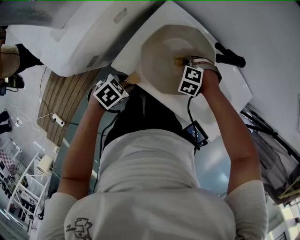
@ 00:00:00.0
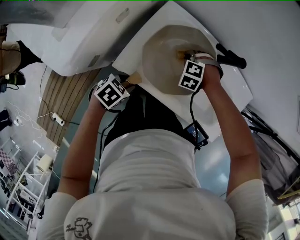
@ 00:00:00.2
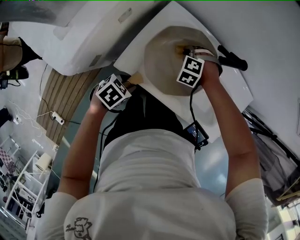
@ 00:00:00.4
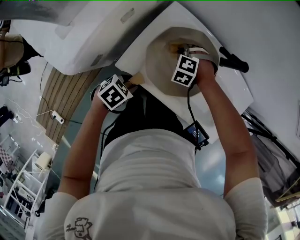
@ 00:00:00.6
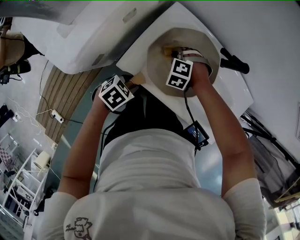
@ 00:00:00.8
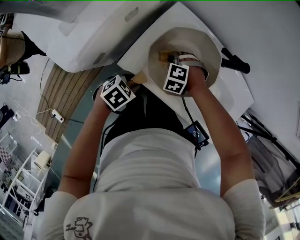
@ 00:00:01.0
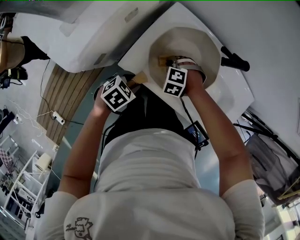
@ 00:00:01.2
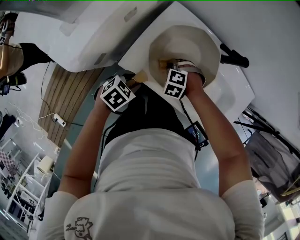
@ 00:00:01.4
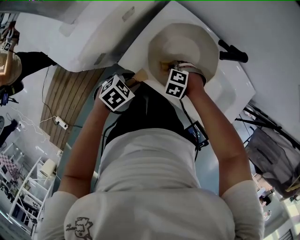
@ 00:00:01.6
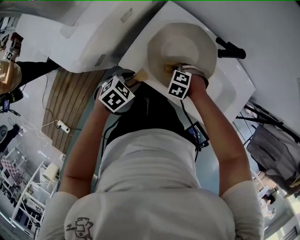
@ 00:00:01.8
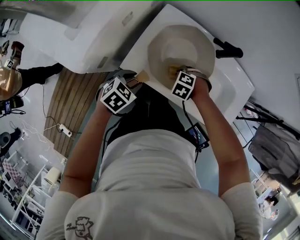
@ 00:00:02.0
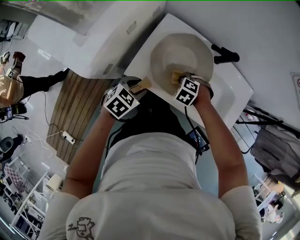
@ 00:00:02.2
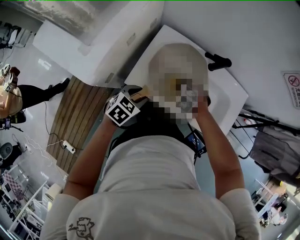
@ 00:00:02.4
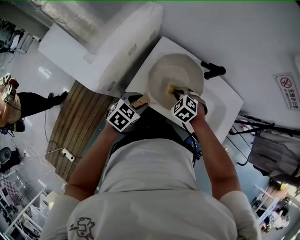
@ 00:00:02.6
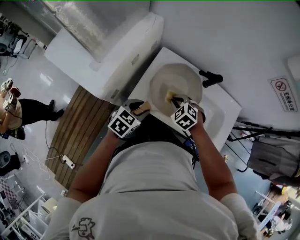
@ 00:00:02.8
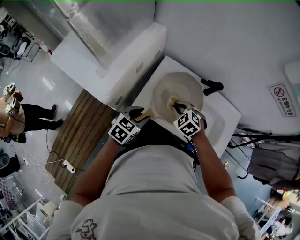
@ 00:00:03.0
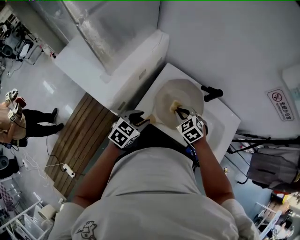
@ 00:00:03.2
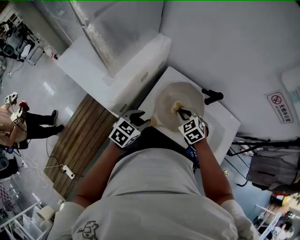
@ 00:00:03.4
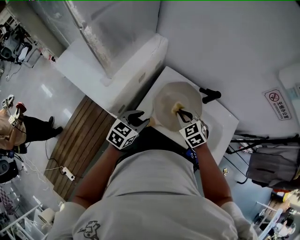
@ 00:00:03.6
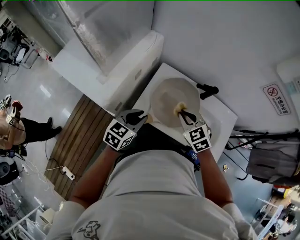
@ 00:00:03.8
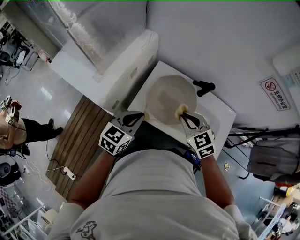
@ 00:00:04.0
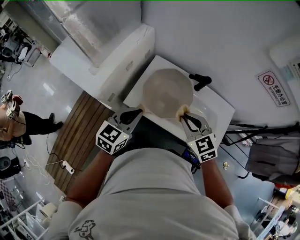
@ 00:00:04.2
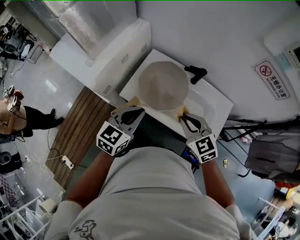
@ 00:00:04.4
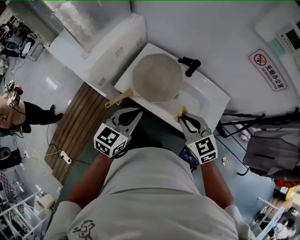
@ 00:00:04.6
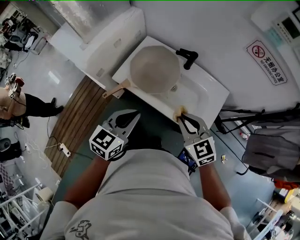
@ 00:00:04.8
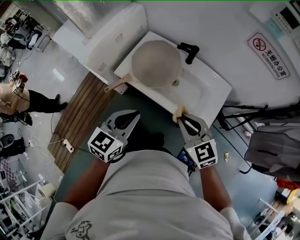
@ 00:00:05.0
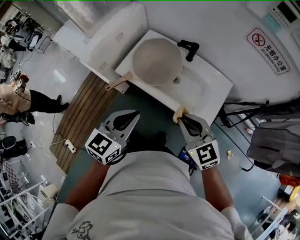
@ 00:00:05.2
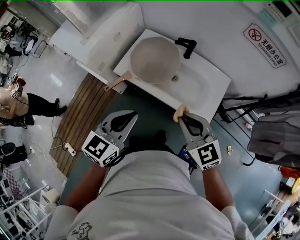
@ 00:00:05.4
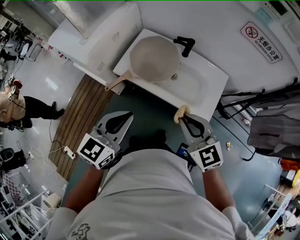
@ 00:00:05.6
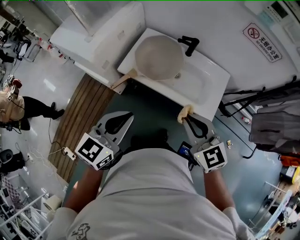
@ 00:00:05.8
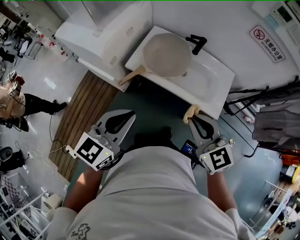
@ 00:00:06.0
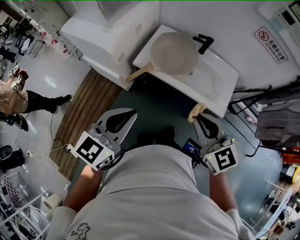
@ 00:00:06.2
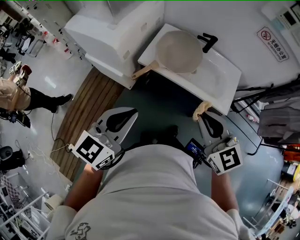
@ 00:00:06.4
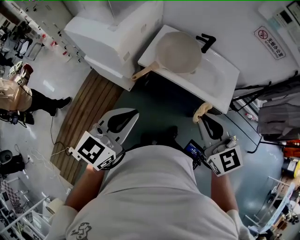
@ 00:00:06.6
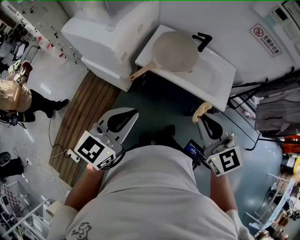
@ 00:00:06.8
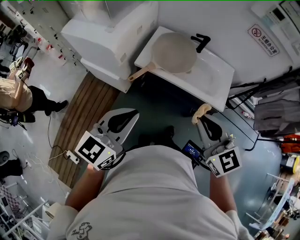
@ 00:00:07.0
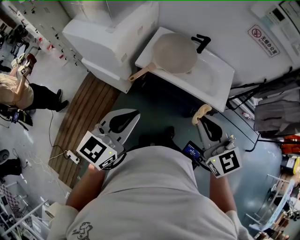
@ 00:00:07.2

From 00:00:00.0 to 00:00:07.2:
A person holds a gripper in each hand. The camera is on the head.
From 00:00:00.0 to 00:00:01.4: The right gripper changes place by about 10 cm.
From 00:00:01.4 to 00:00:02.8: Both grippers travel together upward, approximately 15 cm. The right gripper changes its angle by some 30 degrees.
From 00:00:02.8 to 00:00:04.4: The two grippers go approximately 20 cm upward, to the right and backward. The left gripper turns by about 20 degrees, and closes up. The right gripper changes its angle by about 30 degrees.
From 00:00:04.4 to 00:00:05.8: The two grippers go roughly 20 cm backward and upward.
From 00:00:05.8 to 00:00:07.2: The right gripper moves to the left, backward and upward, roughly 15 cm; the left gripper moves to the left and backward, some 15 cm.

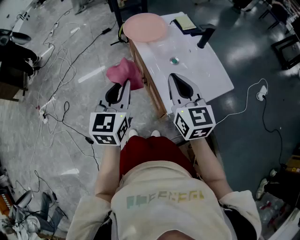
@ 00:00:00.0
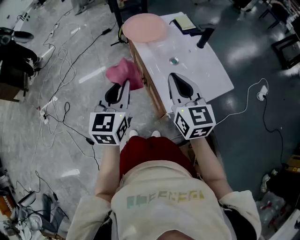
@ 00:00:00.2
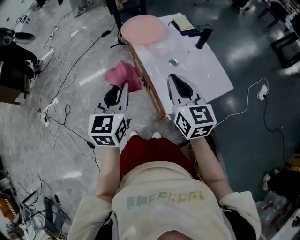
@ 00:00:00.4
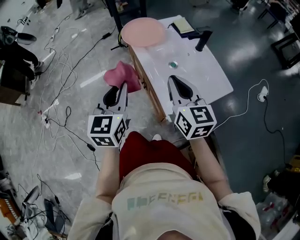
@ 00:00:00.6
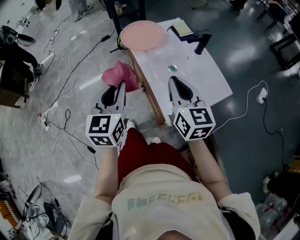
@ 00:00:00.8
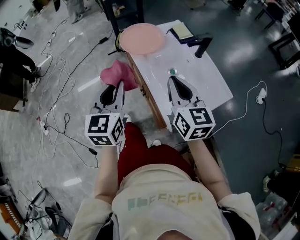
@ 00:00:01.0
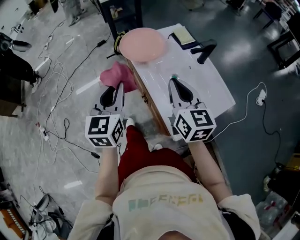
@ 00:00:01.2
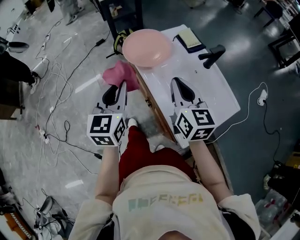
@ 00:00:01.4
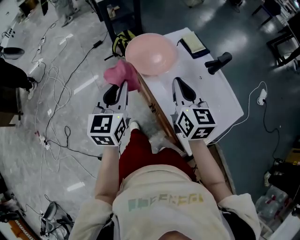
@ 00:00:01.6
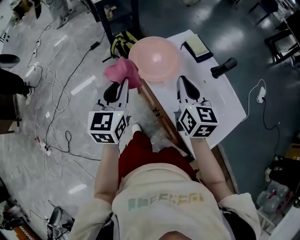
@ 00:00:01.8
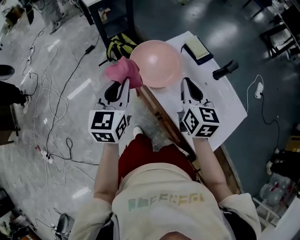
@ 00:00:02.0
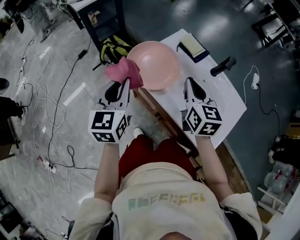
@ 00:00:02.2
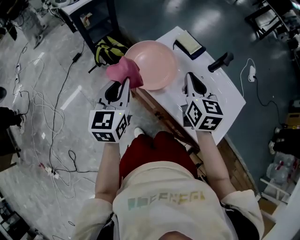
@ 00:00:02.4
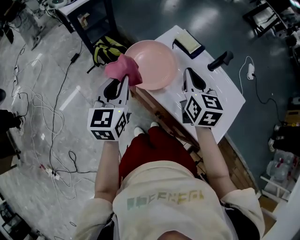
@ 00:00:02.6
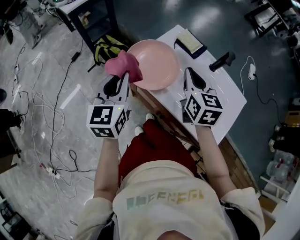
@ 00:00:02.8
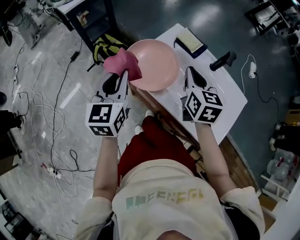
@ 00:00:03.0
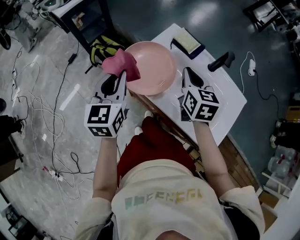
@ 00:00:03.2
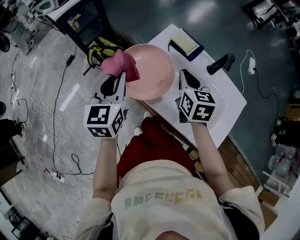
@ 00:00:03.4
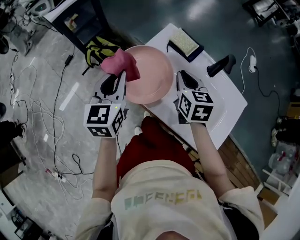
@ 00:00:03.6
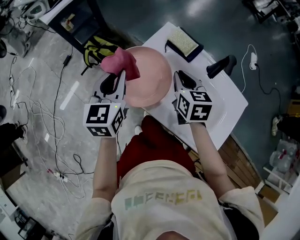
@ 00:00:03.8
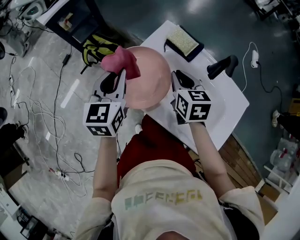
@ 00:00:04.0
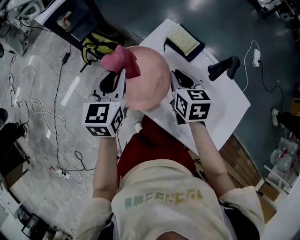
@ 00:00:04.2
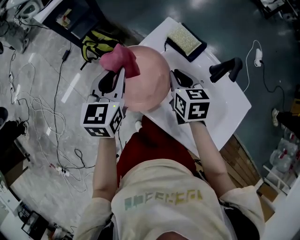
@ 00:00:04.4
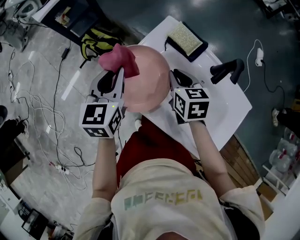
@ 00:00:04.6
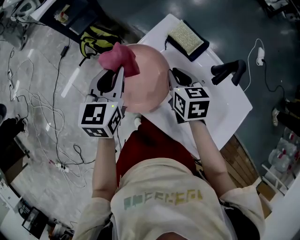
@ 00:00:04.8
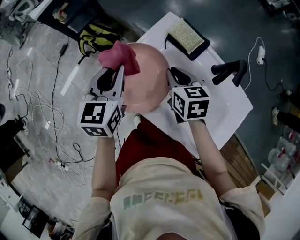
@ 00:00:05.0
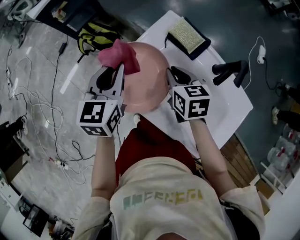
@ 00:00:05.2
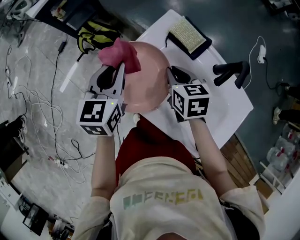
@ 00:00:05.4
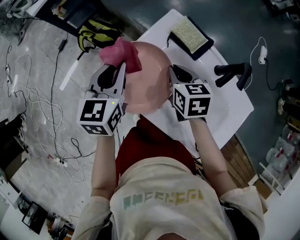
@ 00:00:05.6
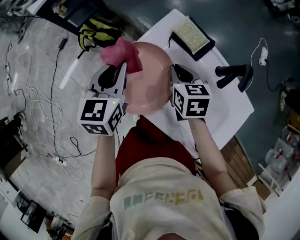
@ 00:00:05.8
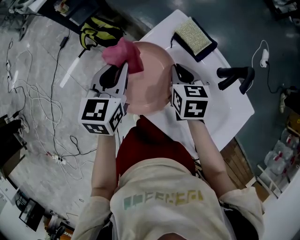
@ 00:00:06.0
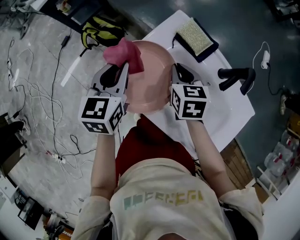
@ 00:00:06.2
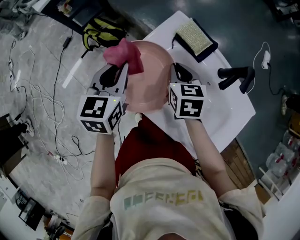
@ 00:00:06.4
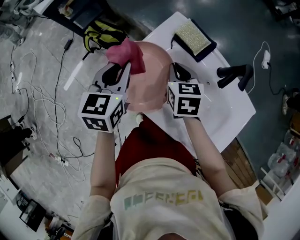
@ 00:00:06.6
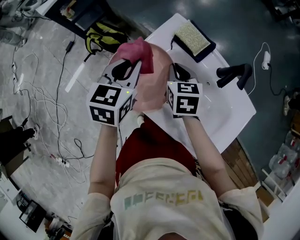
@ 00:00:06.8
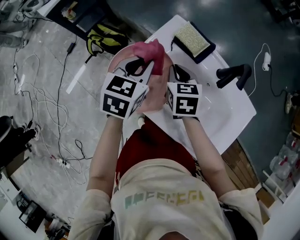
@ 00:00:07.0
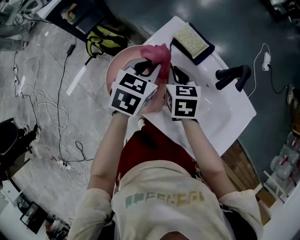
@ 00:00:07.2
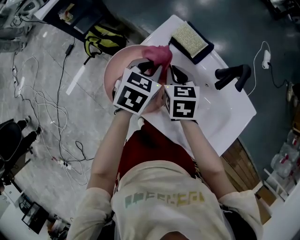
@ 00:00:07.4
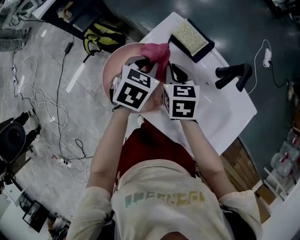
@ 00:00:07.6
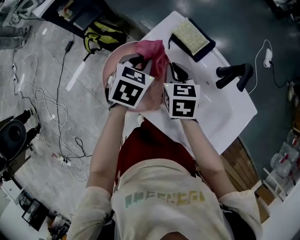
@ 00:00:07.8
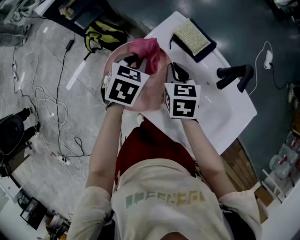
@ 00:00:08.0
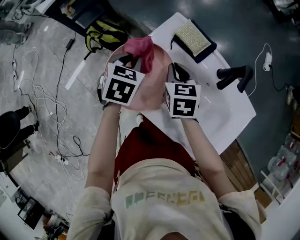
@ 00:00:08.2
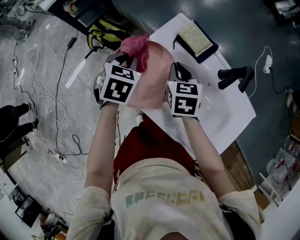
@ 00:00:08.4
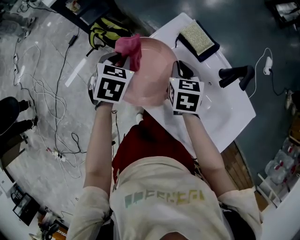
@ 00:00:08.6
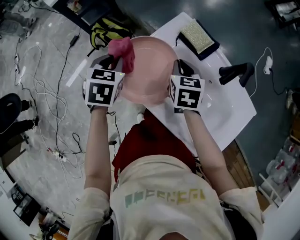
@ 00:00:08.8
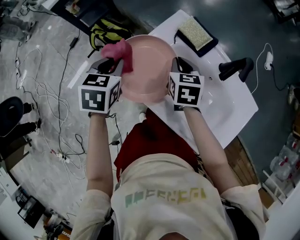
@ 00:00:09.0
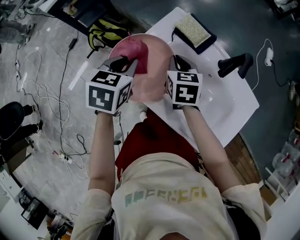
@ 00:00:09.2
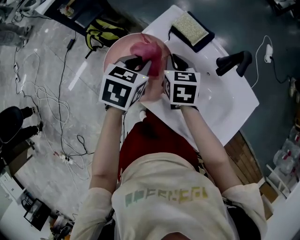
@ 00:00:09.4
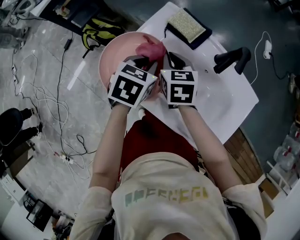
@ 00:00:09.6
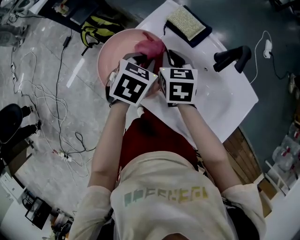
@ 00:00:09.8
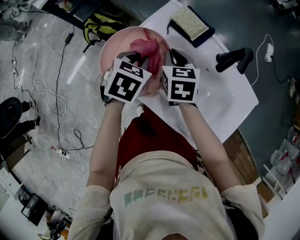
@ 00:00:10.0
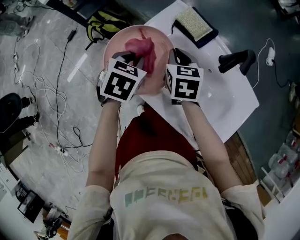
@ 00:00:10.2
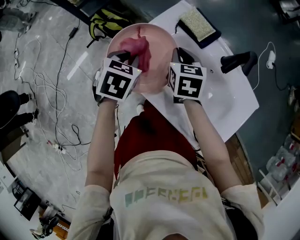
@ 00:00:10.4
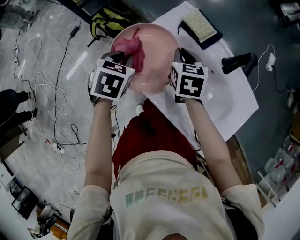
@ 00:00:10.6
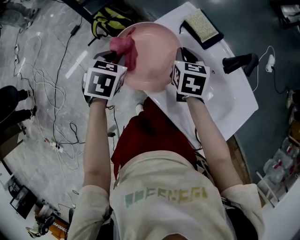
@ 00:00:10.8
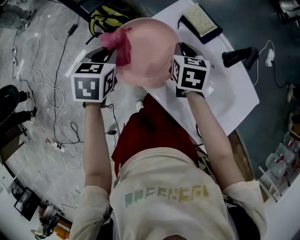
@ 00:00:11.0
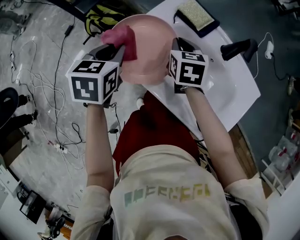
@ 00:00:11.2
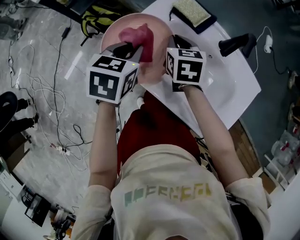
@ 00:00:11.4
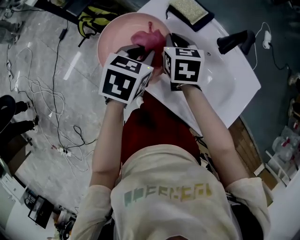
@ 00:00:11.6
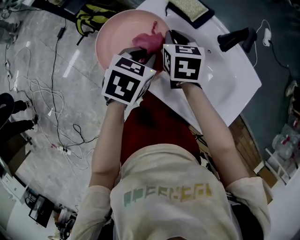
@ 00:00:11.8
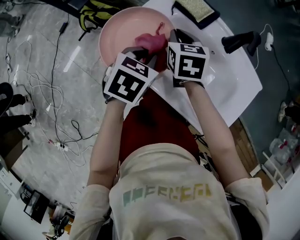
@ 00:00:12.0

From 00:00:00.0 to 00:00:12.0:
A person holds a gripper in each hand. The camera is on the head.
From 00:00:00.0 to 00:00:01.6: Both grippers travel together forward, approximately 25 cm.
From 00:00:01.6 to 00:00:03.0: The left gripper goes approximately 20 cm forward and to the left; the right gripper is displaced forward by some 15 cm, and swivels roughly 30 degrees.
From 00:00:03.0 to 00:00:04.4: The left gripper travels forward by about 15 cm. Meanwhile the right gripper is displaced forward and downward by about 15 cm.
From 00:00:04.4 to 00:00:06.0: The left gripper ends up some 5 cm from where it was. The right gripper moves some 5 cm.
From 00:00:06.0 to 00:00:07.6: The left gripper is displaced to the right and downward by approximately 10 cm, and swivels roughly 30 degrees.
From 00:00:07.6 to 00:00:09.0: The left gripper goes some 15 cm to the left.
From 00:00:09.0 to 00:00:10.4: The left gripper heads to the right, covering some 5 cm.
From 00:00:10.4 to 00:00:12.0: The left gripper travels to the right by some 10 cm.

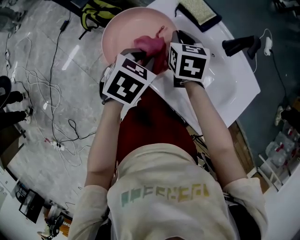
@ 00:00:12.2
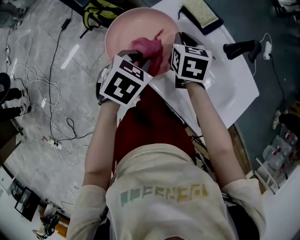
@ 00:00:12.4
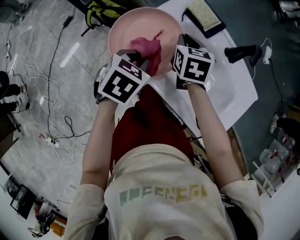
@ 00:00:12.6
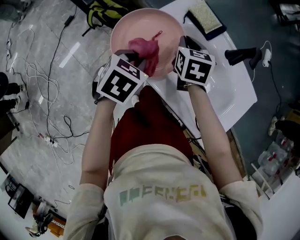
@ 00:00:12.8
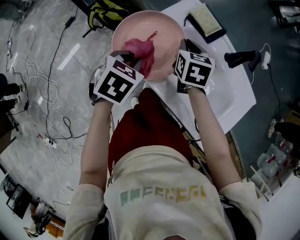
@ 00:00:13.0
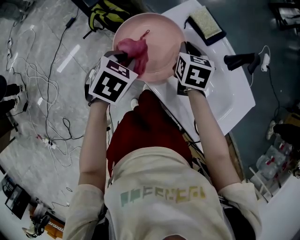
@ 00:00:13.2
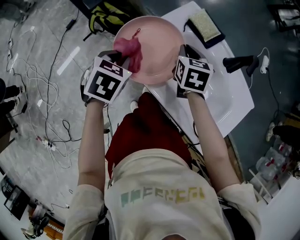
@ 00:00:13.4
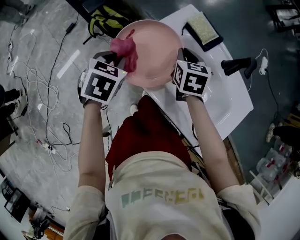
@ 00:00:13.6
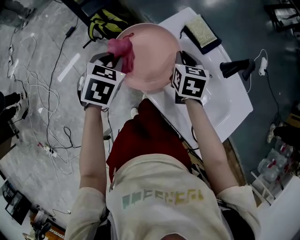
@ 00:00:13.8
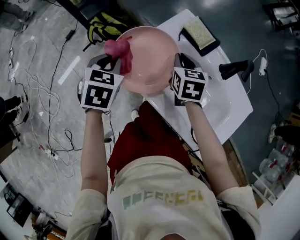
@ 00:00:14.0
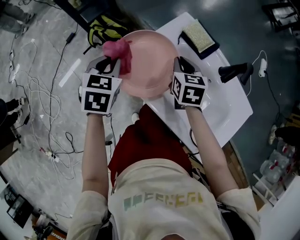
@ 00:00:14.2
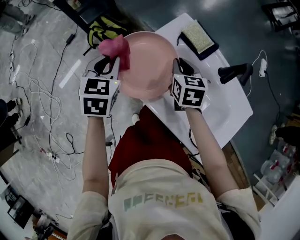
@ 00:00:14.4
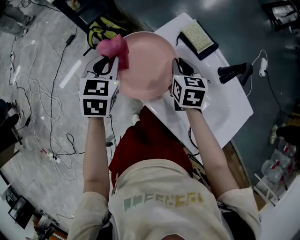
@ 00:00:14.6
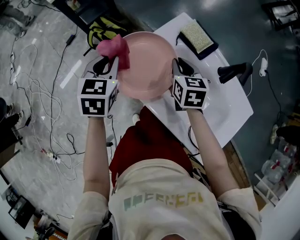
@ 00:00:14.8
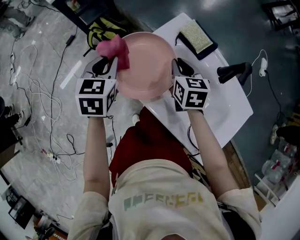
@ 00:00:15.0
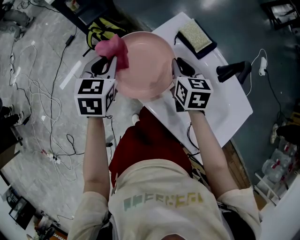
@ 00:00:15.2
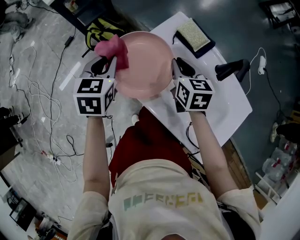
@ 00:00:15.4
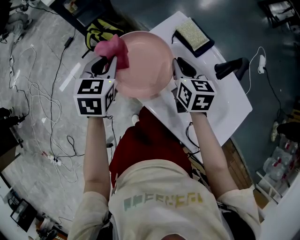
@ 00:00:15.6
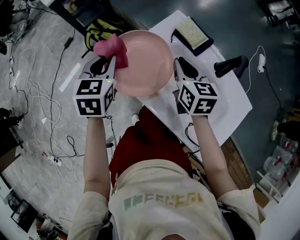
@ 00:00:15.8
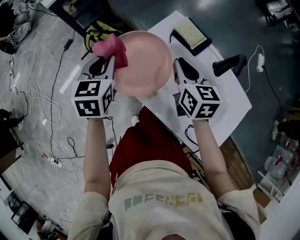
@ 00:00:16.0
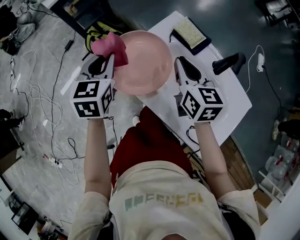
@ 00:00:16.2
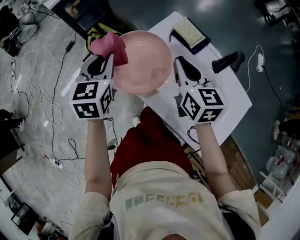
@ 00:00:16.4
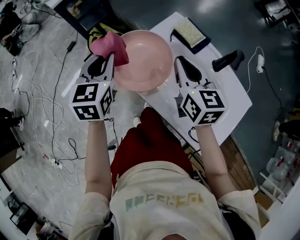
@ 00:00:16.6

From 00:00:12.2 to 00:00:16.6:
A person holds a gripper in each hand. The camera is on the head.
From 00:00:12.2 to 00:00:13.6: The left gripper is displaced to the left by approximately 15 cm.
From 00:00:13.6 to 00:00:15.2: The left gripper ends up roughly 5 cm from where it was, and rotates some 20 degrees.
From 00:00:15.2 to 00:00:16.6: The right gripper is displaced upward and backward by roughly 10 cm, while the left gripper heads upward, covering approximately 5 cm.
